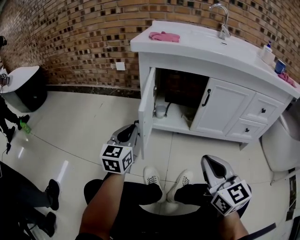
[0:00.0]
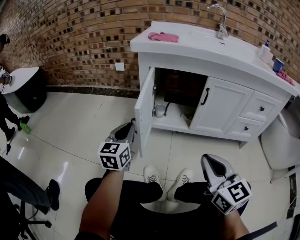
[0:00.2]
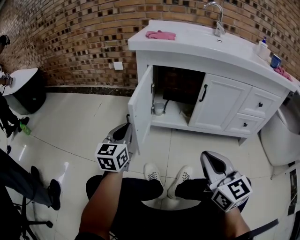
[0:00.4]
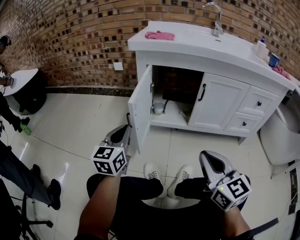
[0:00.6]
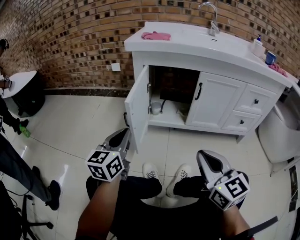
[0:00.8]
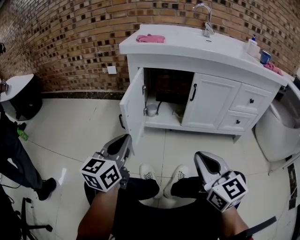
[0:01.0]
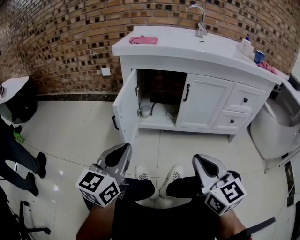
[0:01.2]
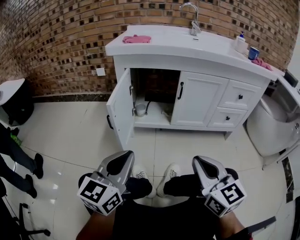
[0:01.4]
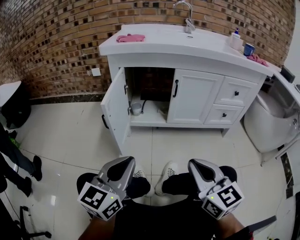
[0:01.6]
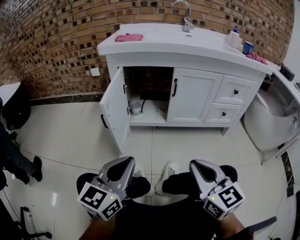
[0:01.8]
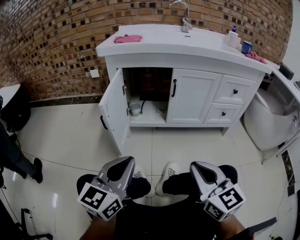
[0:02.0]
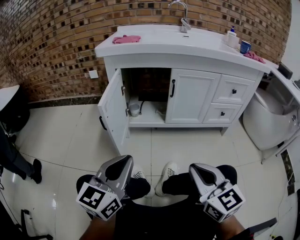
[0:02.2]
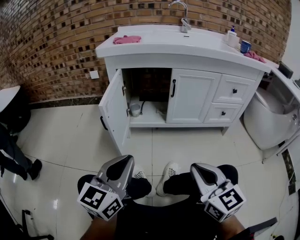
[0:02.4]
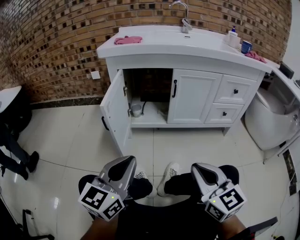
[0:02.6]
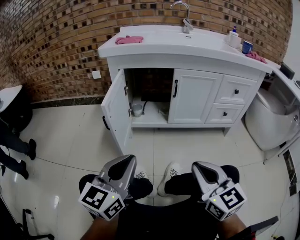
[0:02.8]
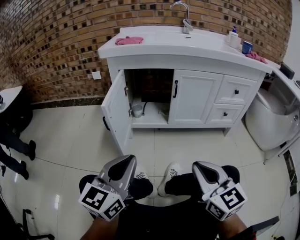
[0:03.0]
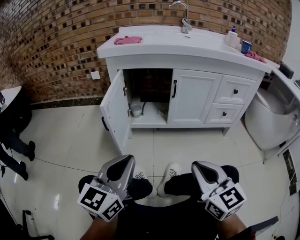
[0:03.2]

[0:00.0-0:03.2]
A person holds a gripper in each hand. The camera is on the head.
0.0 to 1.6 s: The right gripper travels backward by approximately 10 cm. The left gripper goes about 25 cm backward and to the right, and turns by approximately 20 degrees.
1.6 to 3.2 s: The grippers move only a little.

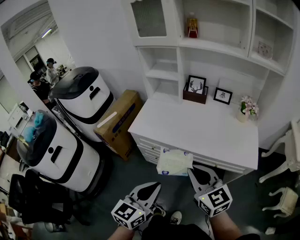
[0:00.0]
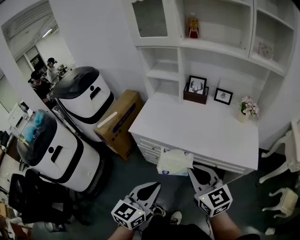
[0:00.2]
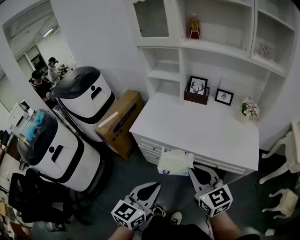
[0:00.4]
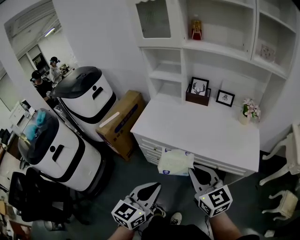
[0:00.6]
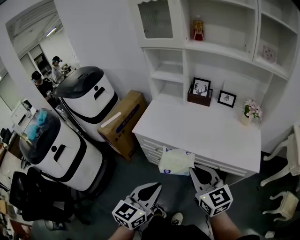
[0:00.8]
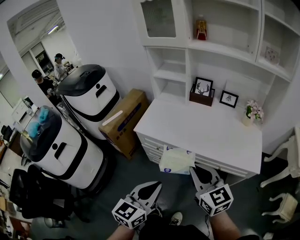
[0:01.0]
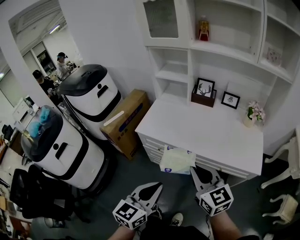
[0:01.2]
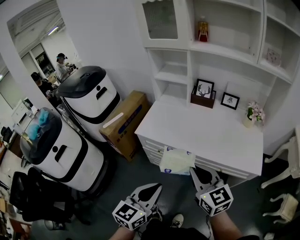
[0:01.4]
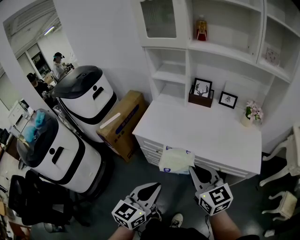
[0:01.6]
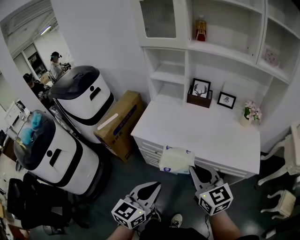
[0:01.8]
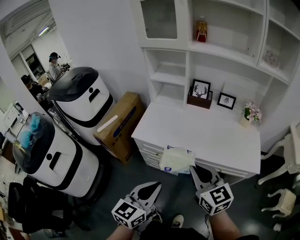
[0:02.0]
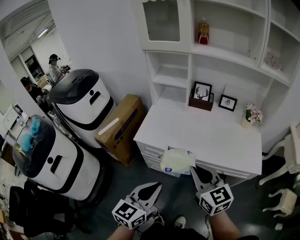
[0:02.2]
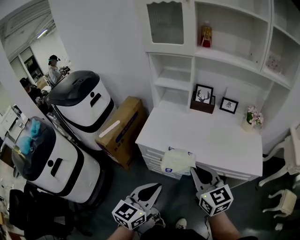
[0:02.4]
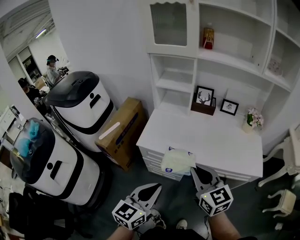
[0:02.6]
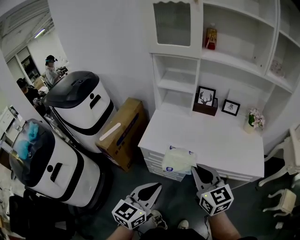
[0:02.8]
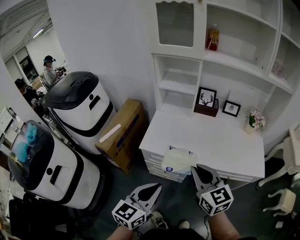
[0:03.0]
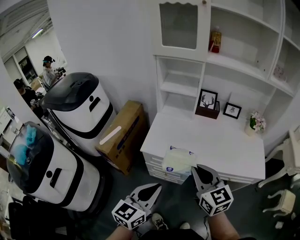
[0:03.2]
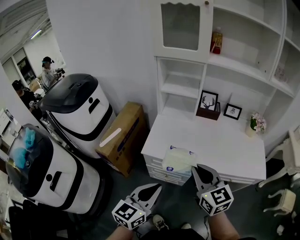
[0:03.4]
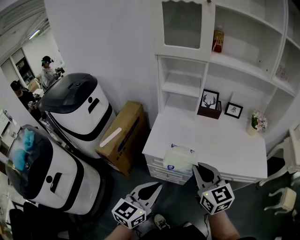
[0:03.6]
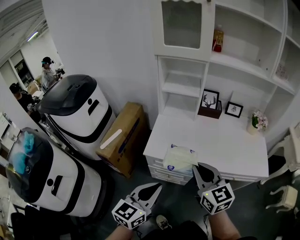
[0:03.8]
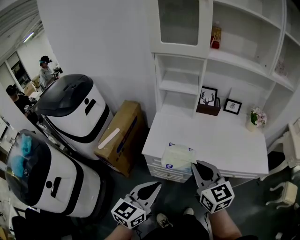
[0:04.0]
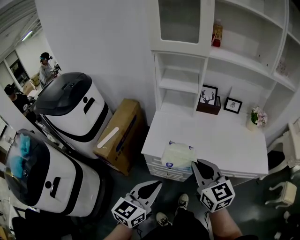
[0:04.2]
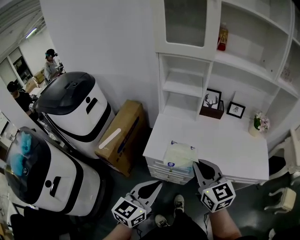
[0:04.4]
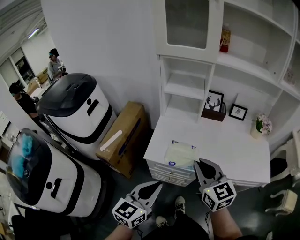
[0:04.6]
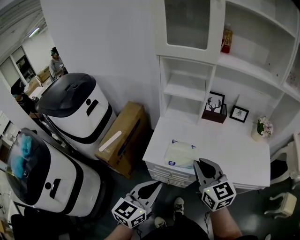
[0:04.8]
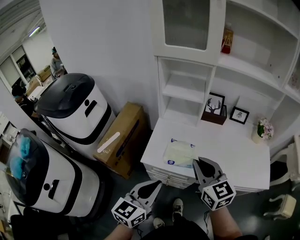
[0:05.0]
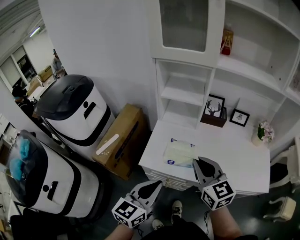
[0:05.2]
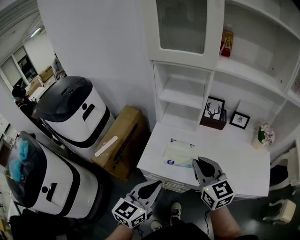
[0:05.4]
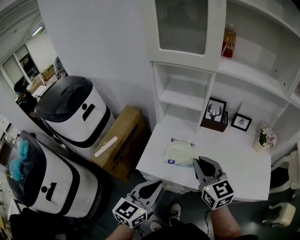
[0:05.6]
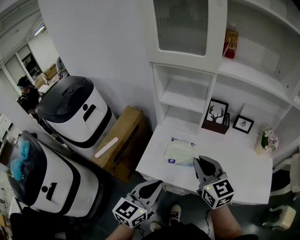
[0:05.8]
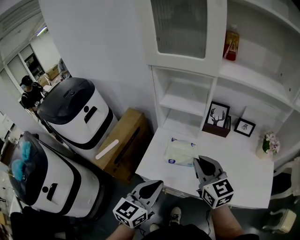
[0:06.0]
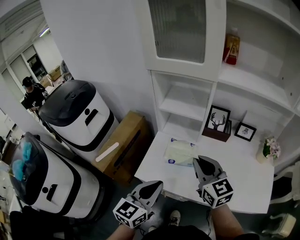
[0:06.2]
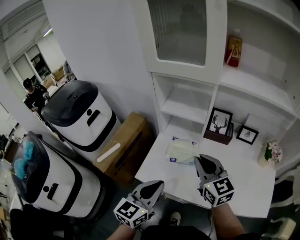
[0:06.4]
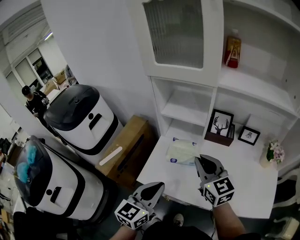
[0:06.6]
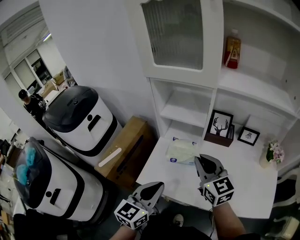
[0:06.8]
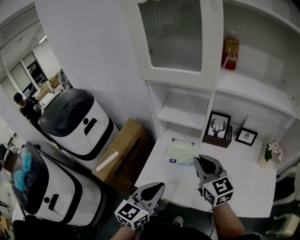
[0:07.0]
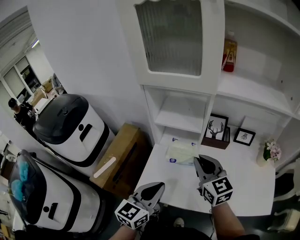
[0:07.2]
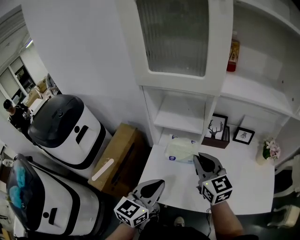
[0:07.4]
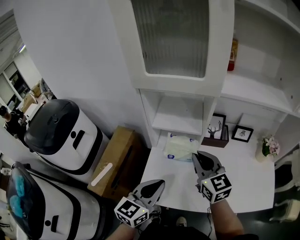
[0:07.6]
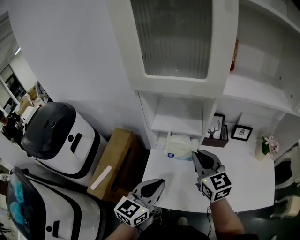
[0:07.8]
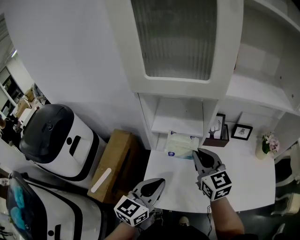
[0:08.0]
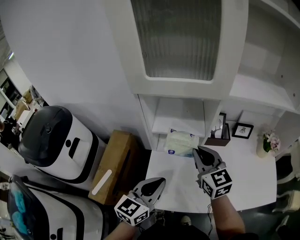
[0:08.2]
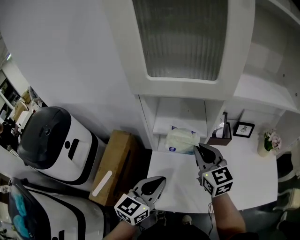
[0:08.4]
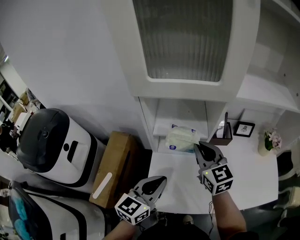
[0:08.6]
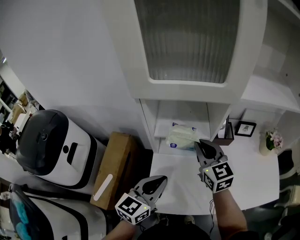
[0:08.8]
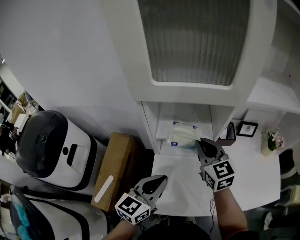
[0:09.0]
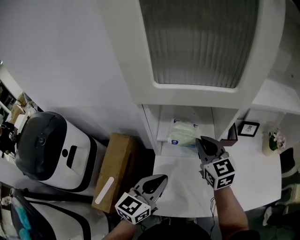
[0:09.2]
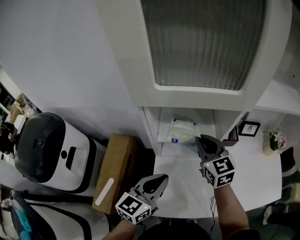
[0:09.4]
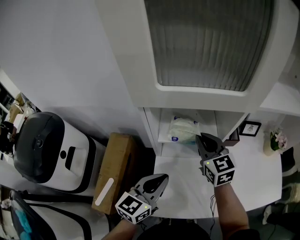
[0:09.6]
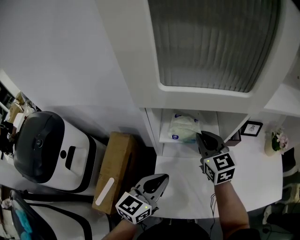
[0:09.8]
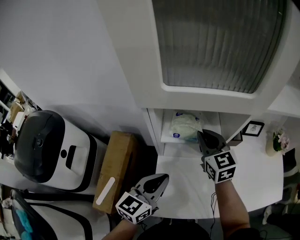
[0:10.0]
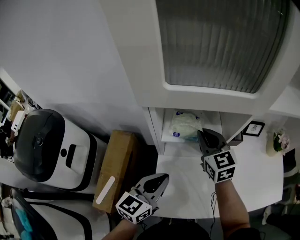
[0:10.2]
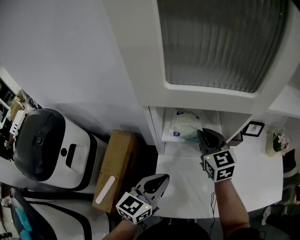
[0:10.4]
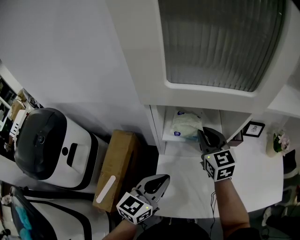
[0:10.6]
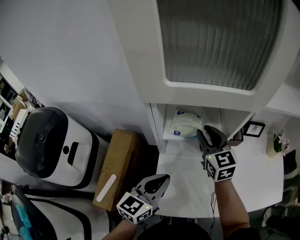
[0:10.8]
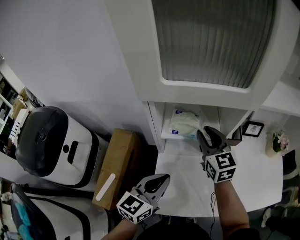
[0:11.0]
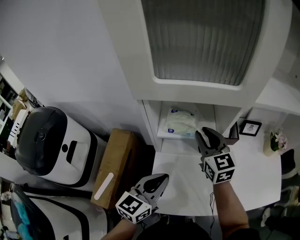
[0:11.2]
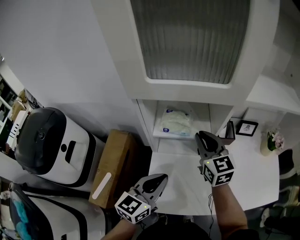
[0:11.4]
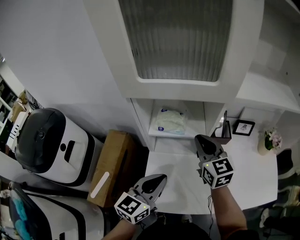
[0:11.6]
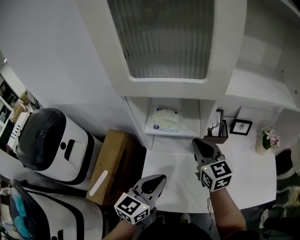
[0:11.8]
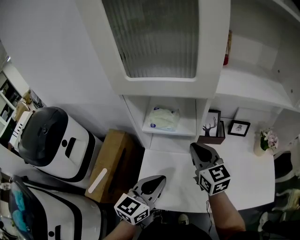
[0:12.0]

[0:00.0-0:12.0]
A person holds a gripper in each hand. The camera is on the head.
0.0 to 1.6 s: The grippers move only a little.
1.6 to 3.0 s: The grippers both shift to the left and forward by roughly 15 cm.
3.0 to 4.4 s: Both grippers travel together forward and to the left, approximately 10 cm.
4.4 to 6.0 s: The right gripper is displaced forward by approximately 15 cm, while the left gripper is displaced forward and to the right by about 15 cm.
6.0 to 7.6 s: Both grippers travel together forward, about 15 cm.
7.6 to 9.0 s: The right gripper moves forward, some 10 cm, while the left gripper heads forward and to the left, covering some 10 cm.
9.0 to 10.4 s: The right gripper travels forward by about 5 cm.
10.4 to 12.0 s: The right gripper moves backward and to the right, some 15 cm; the left gripper heads to the right and backward, covering some 10 cm.

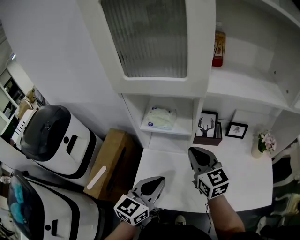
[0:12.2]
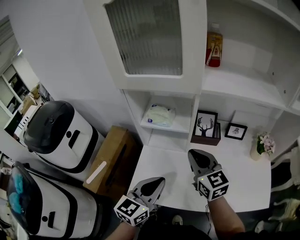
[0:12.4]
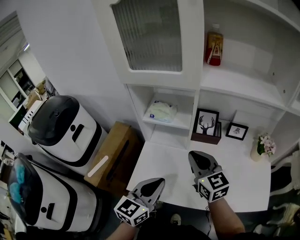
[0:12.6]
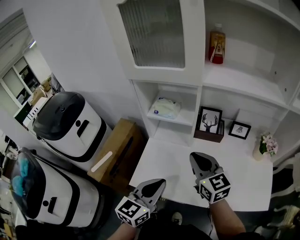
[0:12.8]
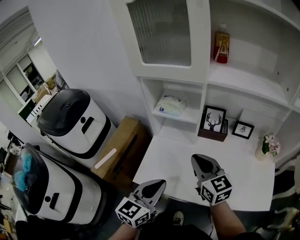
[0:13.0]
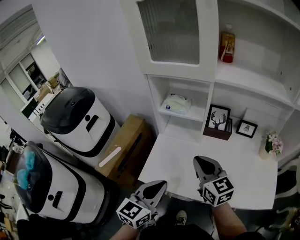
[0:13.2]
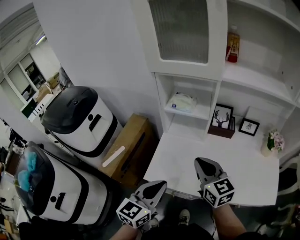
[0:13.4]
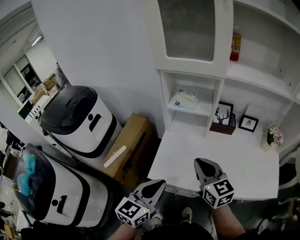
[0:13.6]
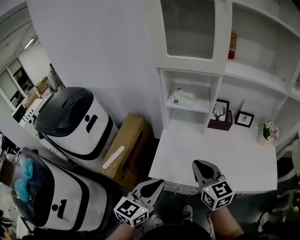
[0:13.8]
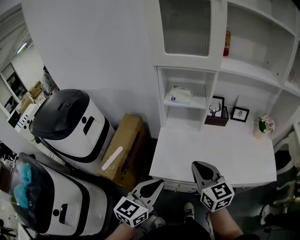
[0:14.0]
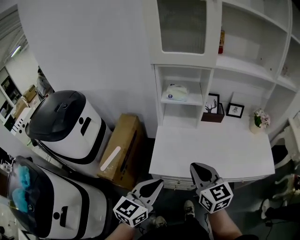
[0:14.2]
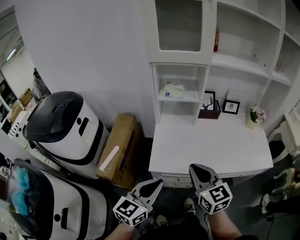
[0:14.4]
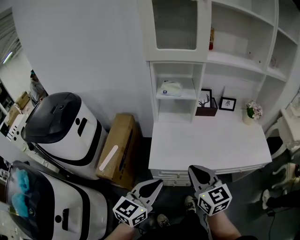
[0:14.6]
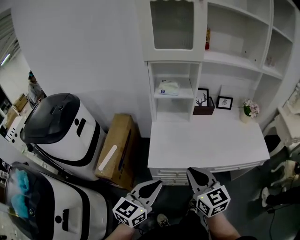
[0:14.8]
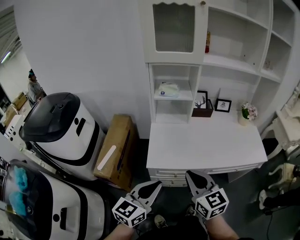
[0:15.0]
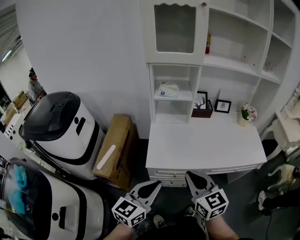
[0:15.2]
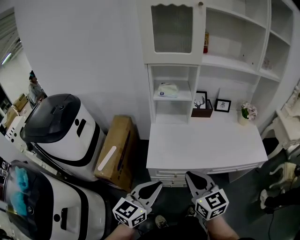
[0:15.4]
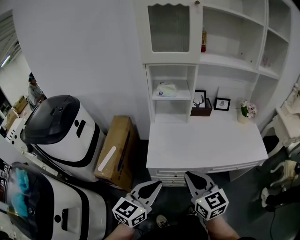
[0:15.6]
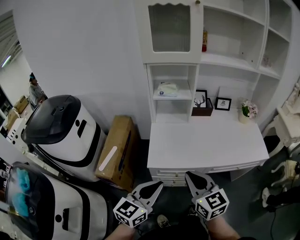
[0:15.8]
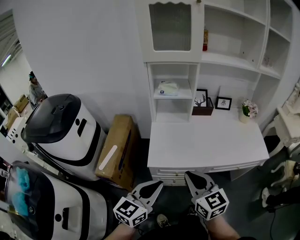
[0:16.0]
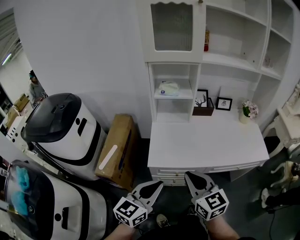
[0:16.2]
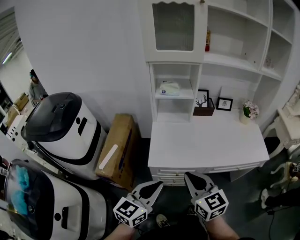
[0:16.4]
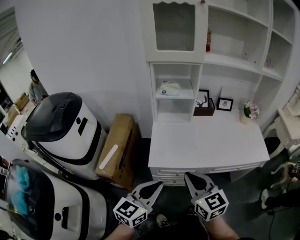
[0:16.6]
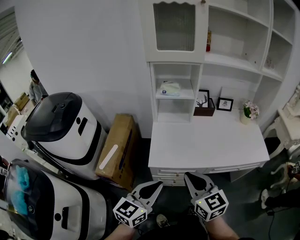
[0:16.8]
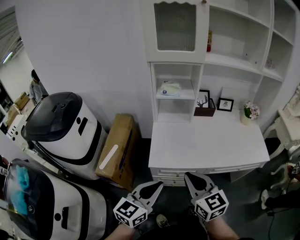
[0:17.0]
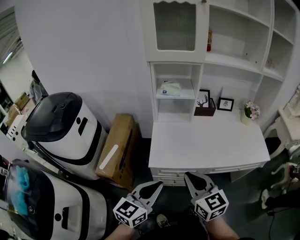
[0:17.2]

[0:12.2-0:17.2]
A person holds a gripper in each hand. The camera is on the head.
12.2 to 13.8 s: Both grippers move backward and to the left, about 20 cm.
13.8 to 15.6 s: The left gripper goes approximately 10 cm backward, while the right gripper heads backward, covering roughly 15 cm.
15.6 to 17.2 s: The grippers make only small movements.

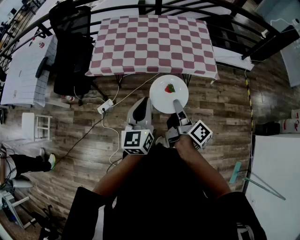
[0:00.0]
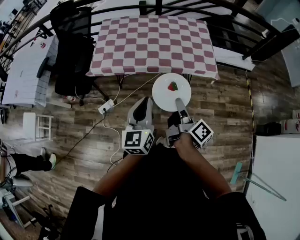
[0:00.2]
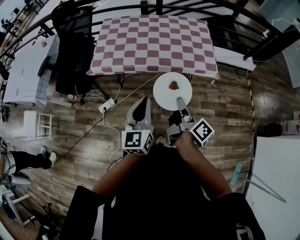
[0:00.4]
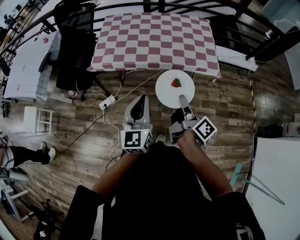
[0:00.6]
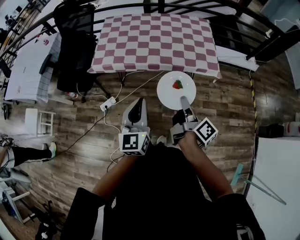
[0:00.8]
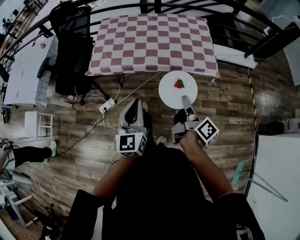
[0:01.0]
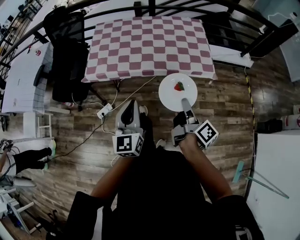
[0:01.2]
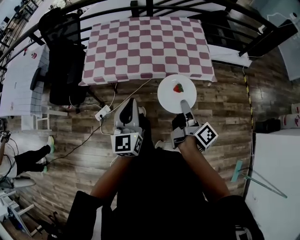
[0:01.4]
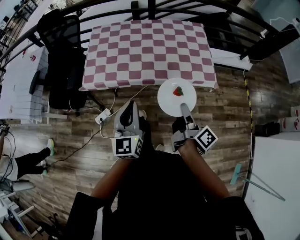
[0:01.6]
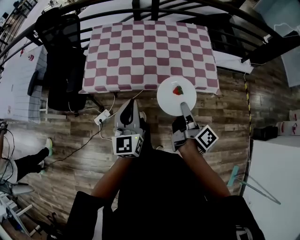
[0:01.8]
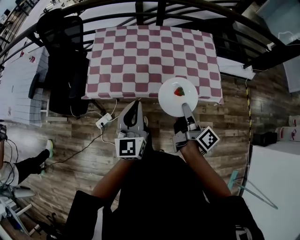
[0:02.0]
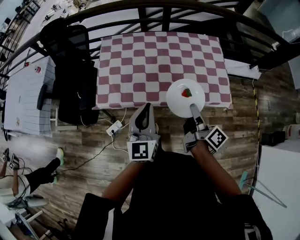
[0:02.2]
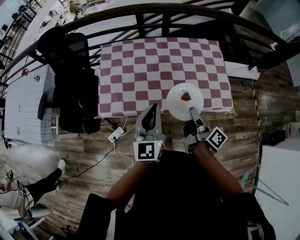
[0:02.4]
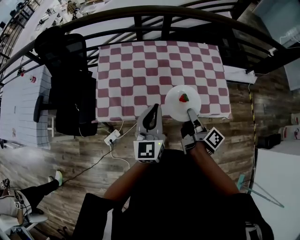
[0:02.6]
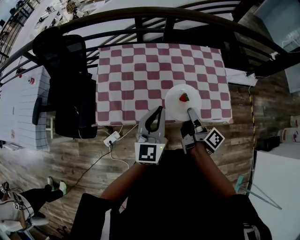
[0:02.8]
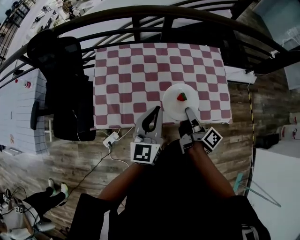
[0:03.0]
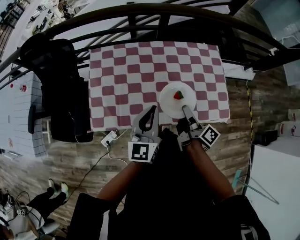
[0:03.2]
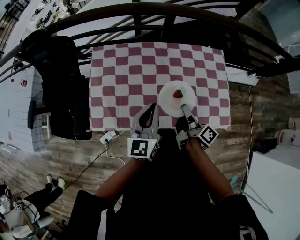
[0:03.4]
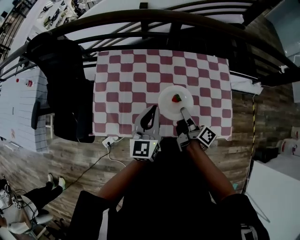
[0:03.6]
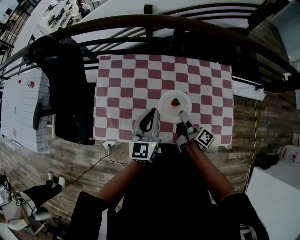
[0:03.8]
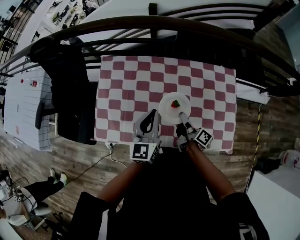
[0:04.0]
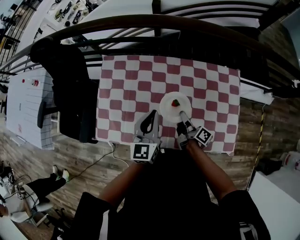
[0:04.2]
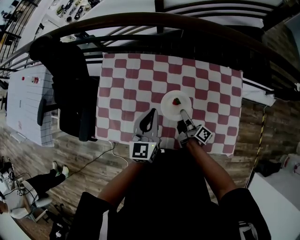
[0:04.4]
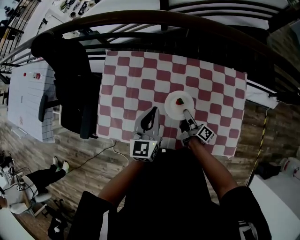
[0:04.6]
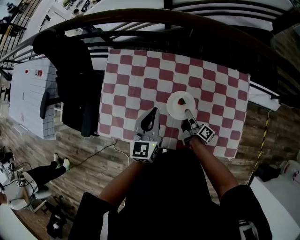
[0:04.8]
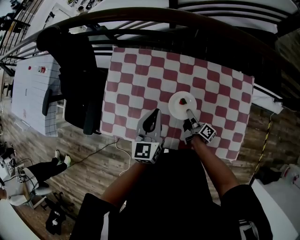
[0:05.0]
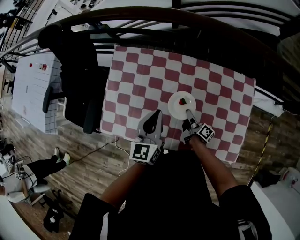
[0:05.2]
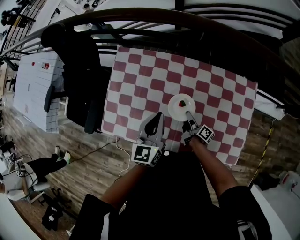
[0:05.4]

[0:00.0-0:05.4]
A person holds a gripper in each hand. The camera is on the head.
0.0 to 1.4 s: The left gripper goes roughly 5 cm forward. The right gripper travels to the right and forward by approximately 10 cm.
1.4 to 2.8 s: The grippers both shift forward by some 30 cm.
2.8 to 4.0 s: The right gripper moves forward and downward, about 25 cm. The left gripper shifts some 20 cm forward.
4.0 to 5.4 s: The right gripper goes roughly 15 cm downward and forward.
